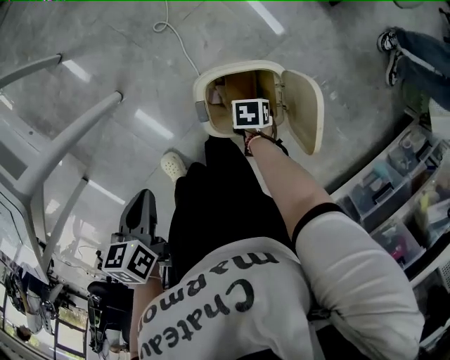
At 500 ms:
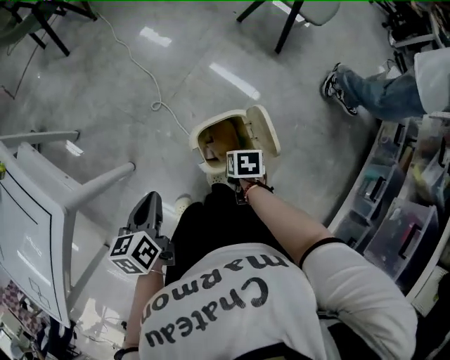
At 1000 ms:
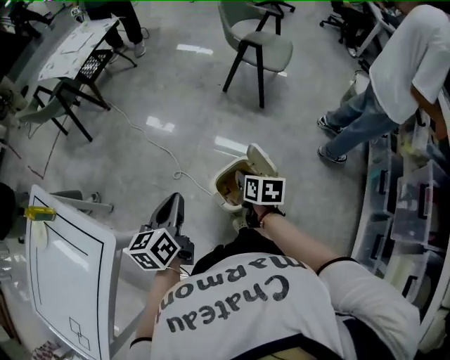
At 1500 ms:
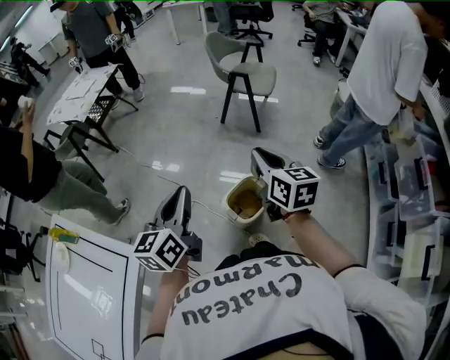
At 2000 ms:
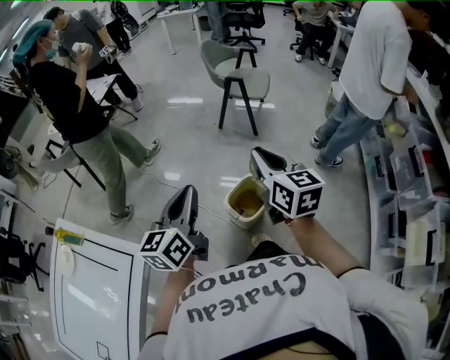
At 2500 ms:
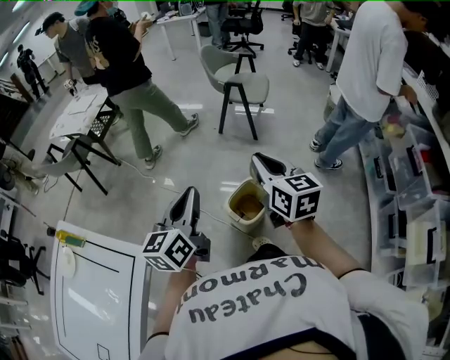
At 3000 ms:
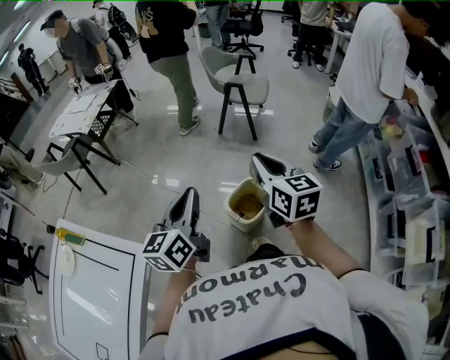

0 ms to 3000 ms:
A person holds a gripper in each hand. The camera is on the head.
0 ms to 1500 ms: The right gripper moves upward, roughly 60 cm, tips its fingers upward by roughly 70 degrees, and closes up, while the left gripper moves upward, some 40 cm, and angles its fingers upward, by approximately 50 degrees.
1500 ms to 3000 ms: The right gripper heads backward, covering roughly 5 cm, while the left gripper changes place by some 5 cm.

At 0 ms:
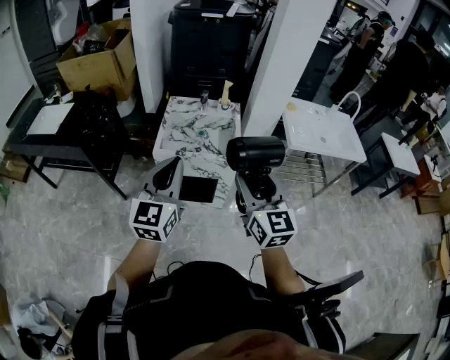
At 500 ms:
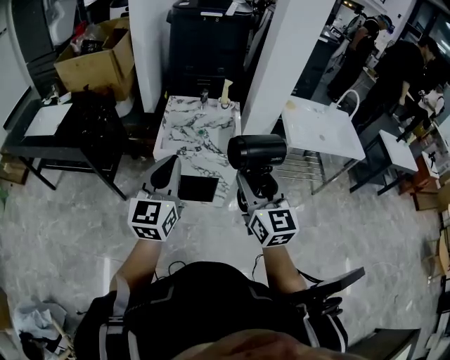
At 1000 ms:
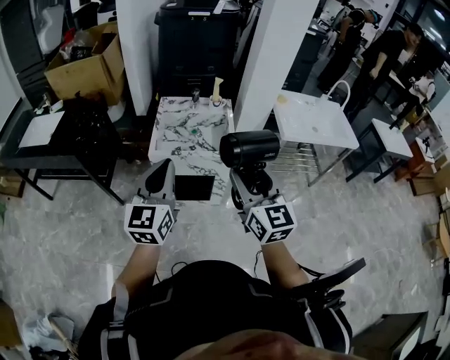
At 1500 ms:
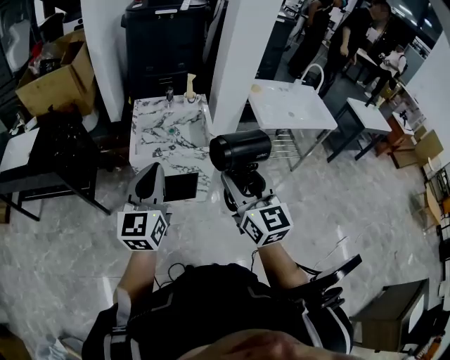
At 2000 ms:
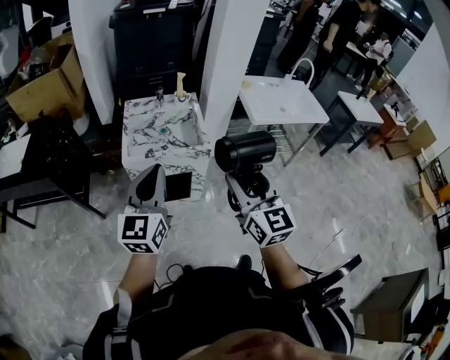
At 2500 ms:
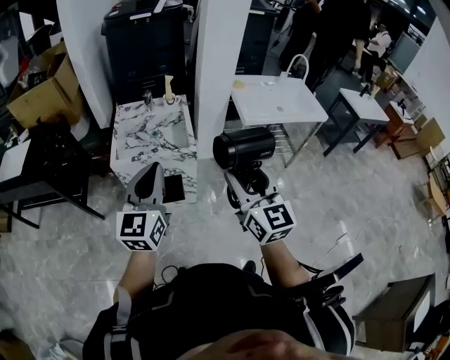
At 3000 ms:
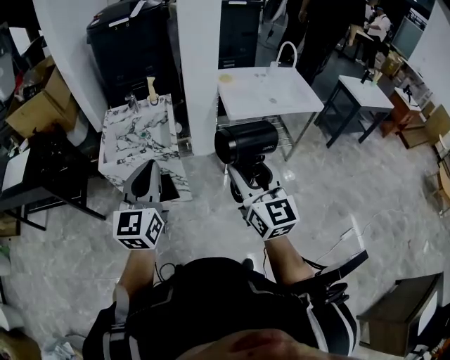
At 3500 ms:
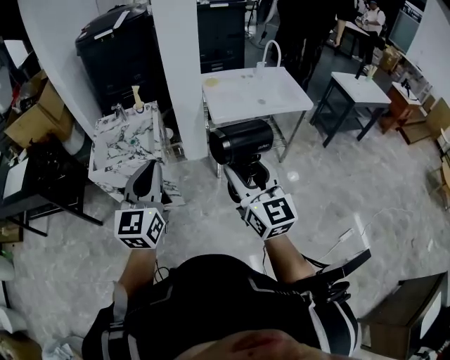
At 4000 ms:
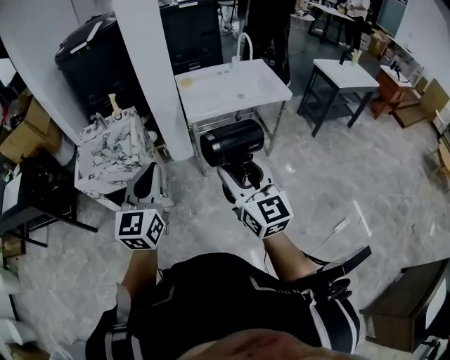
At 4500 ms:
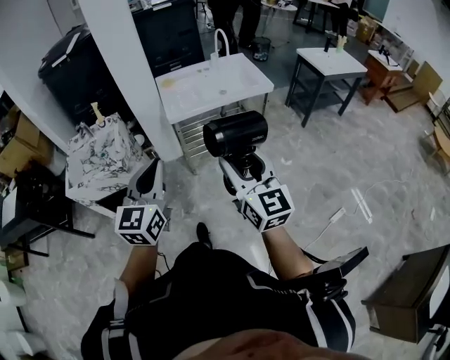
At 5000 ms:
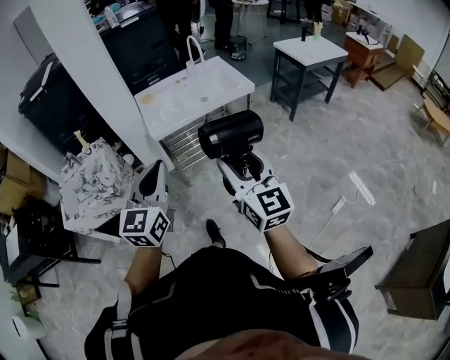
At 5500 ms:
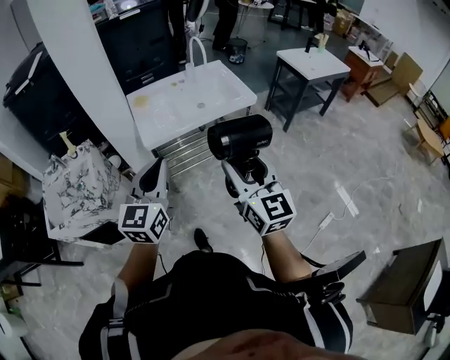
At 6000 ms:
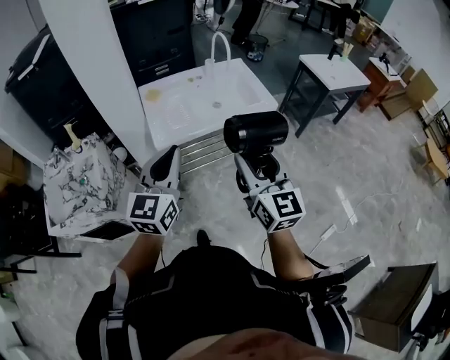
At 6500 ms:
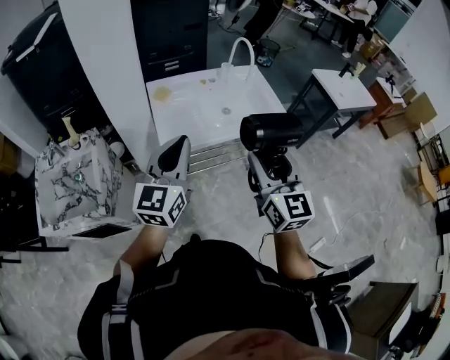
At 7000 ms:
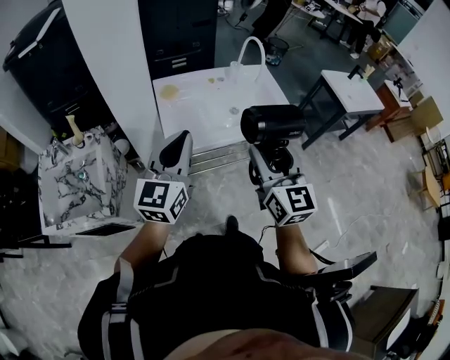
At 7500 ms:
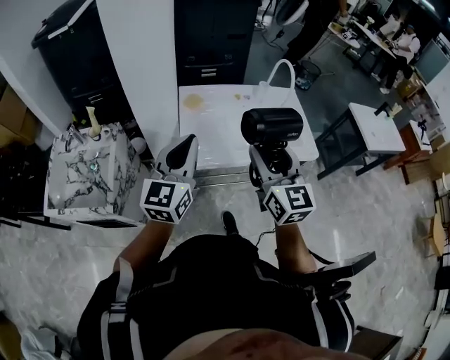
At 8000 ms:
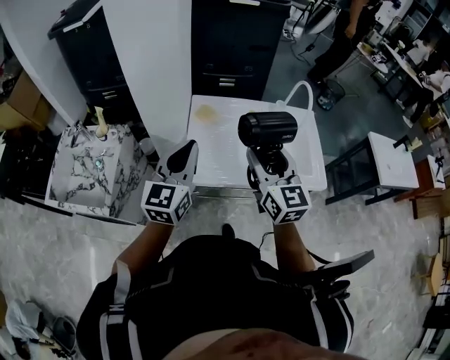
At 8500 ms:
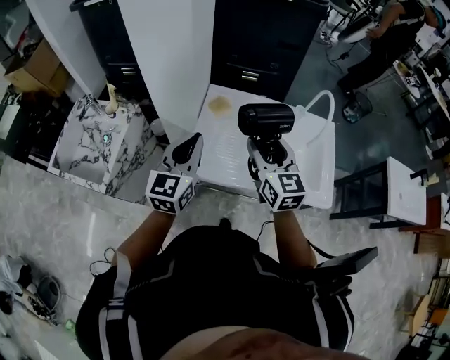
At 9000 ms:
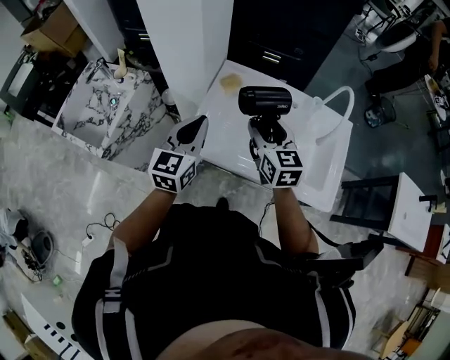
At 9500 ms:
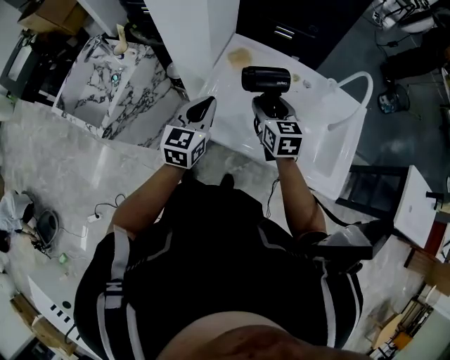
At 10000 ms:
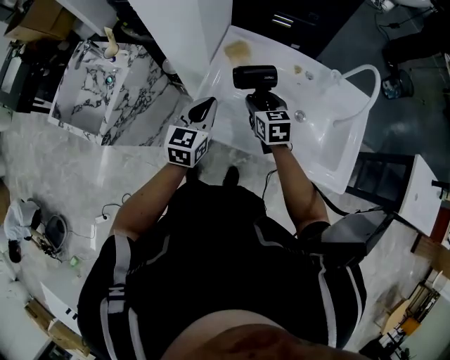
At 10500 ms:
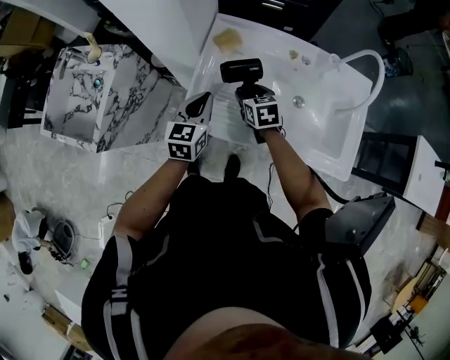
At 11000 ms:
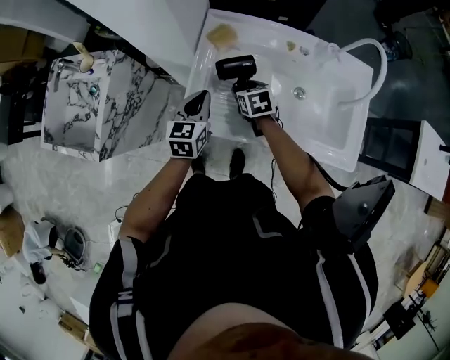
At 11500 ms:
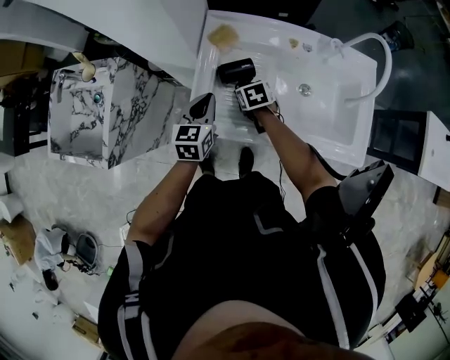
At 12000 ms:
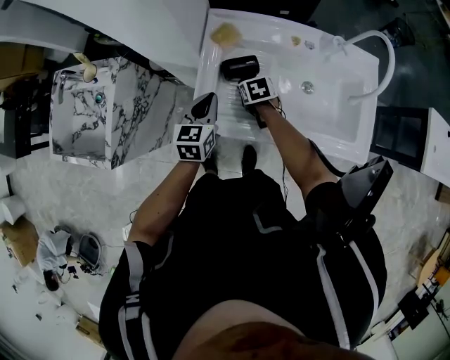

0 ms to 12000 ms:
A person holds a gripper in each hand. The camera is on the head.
0 ms to 2000 ms: The grippers stay close to where they were, moving slightly.
2000 ms to 4000 ms: The two grippers travel together, to the right, approximately 40 cm.
4000 ms to 6000 ms: The two grippers go approximately 30 cm forward and to the right.
6000 ms to 8000 ms: Both grippers move forward, roughly 30 cm. The left gripper rotates approximately 20 degrees, while the right gripper changes its angle by roughly 20 degrees.
8000 ms to 10000 ms: Both grippers travel together downward and forward, about 25 cm. The left gripper turns by about 20 degrees; the right gripper points its fingers about 30 degrees further downward.
10000 ms to 12000 ms: The right gripper travels downward by roughly 15 cm, and rotates about 30 degrees. The left gripper goes some 5 cm downward.

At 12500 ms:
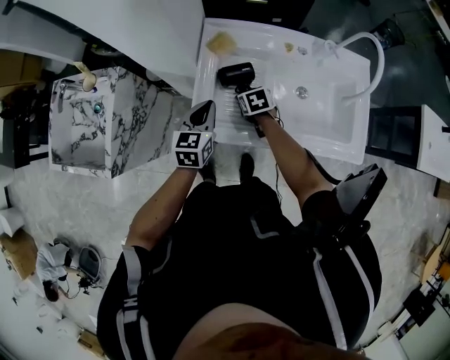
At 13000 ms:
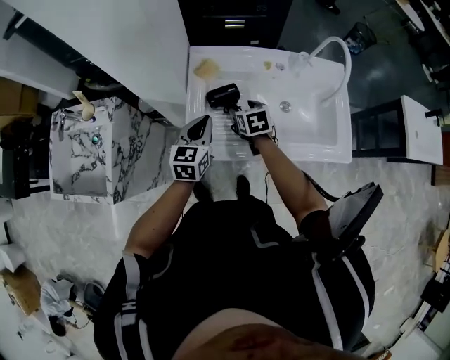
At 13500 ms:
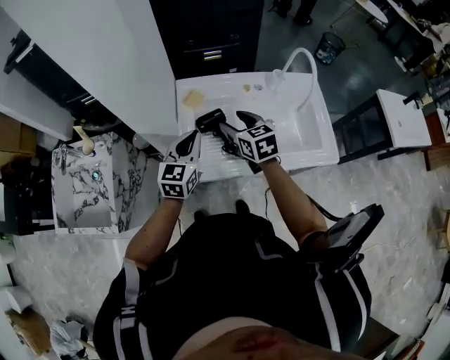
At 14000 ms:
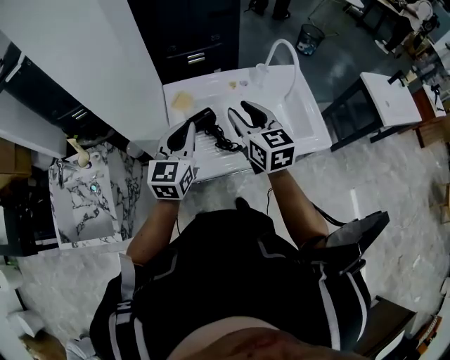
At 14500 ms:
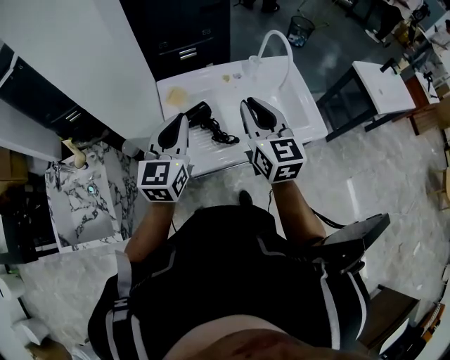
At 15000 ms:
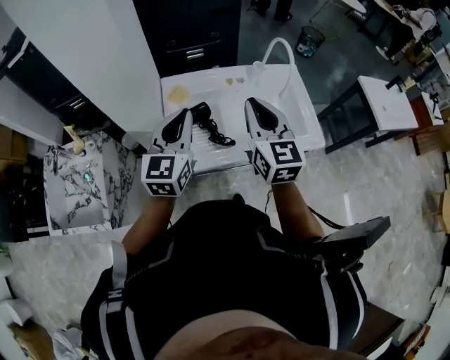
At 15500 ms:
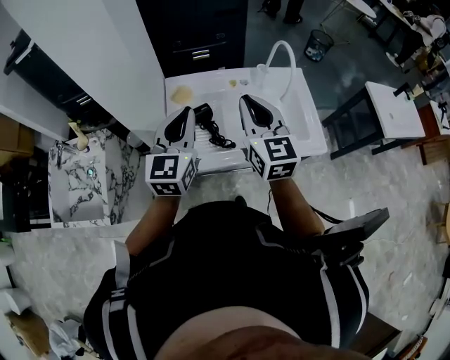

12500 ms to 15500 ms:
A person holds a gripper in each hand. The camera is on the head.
12500 ms to 14000 ms: The right gripper shifts some 35 cm upward, and points its fingers approximately 50 degrees further upward, while the left gripper shifts roughly 20 cm upward, and turns by some 30 degrees.
14000 ms to 15500 ms: The grippers both shift upward by about 5 cm. The right gripper closes its fingers.

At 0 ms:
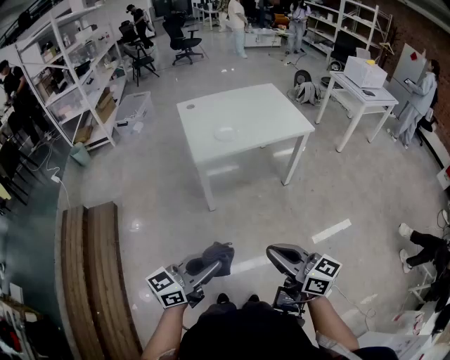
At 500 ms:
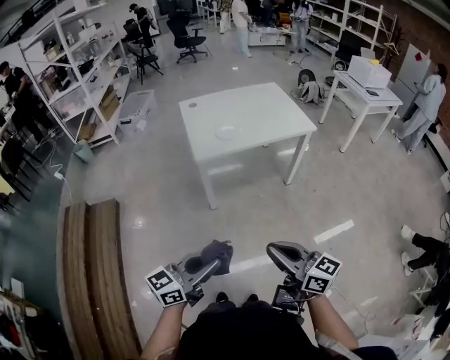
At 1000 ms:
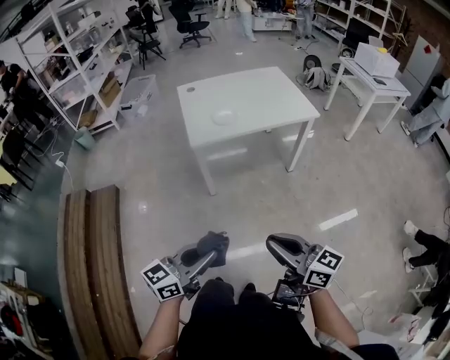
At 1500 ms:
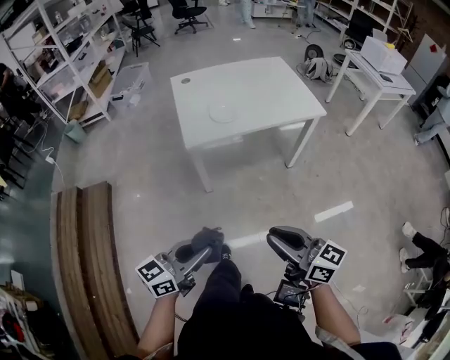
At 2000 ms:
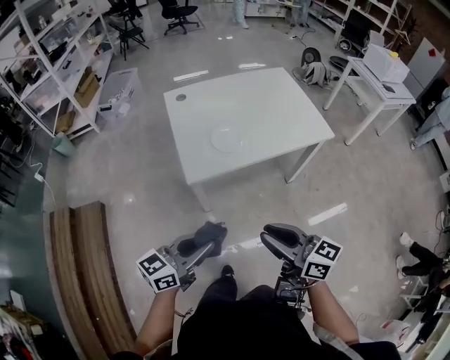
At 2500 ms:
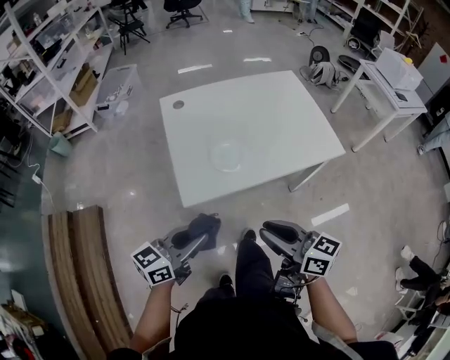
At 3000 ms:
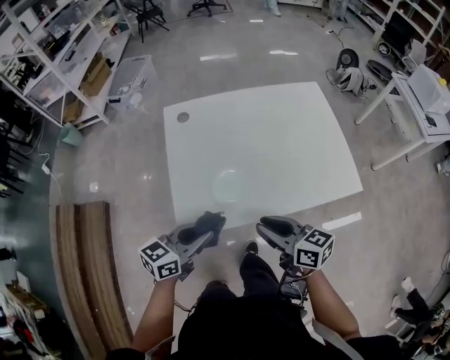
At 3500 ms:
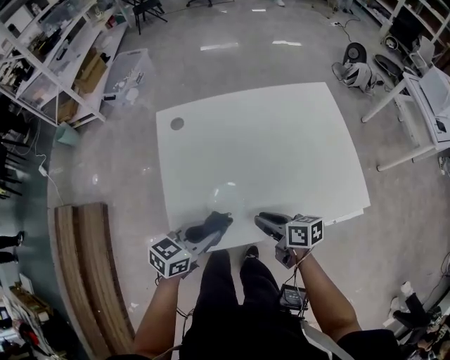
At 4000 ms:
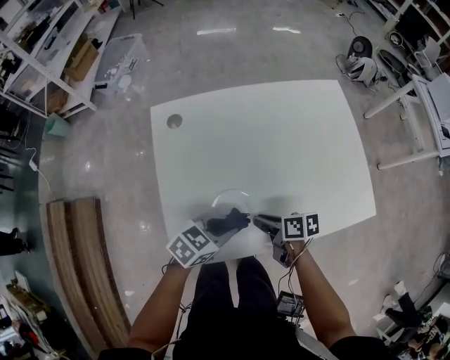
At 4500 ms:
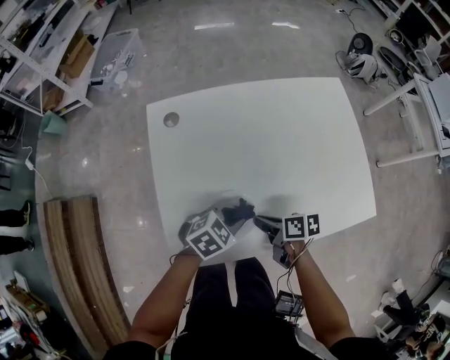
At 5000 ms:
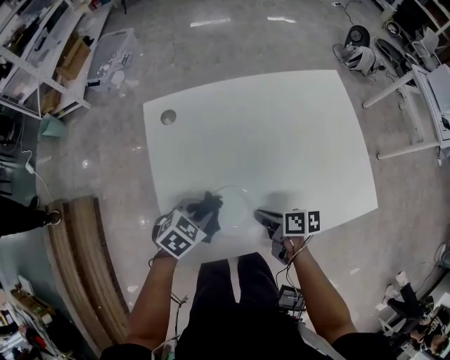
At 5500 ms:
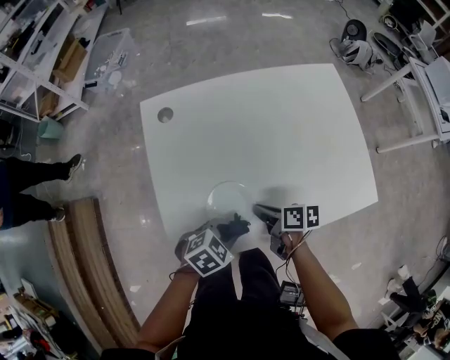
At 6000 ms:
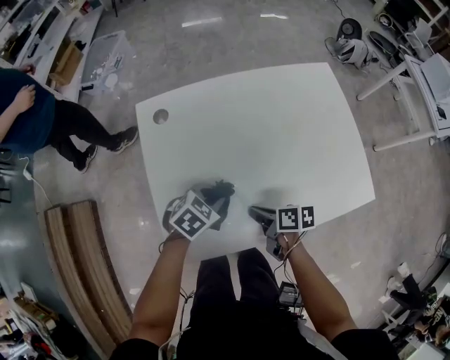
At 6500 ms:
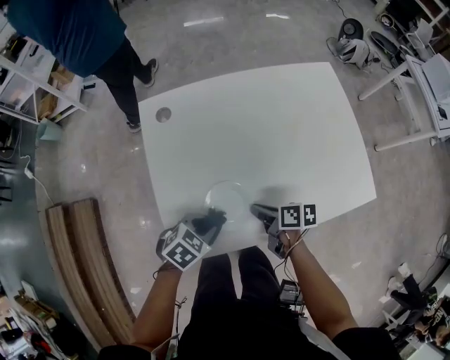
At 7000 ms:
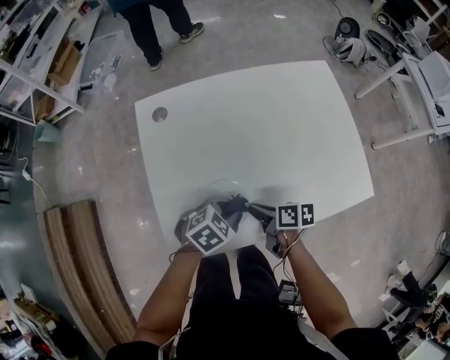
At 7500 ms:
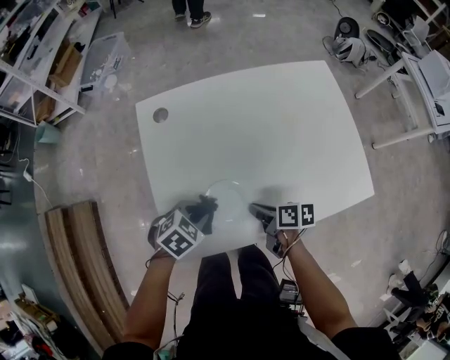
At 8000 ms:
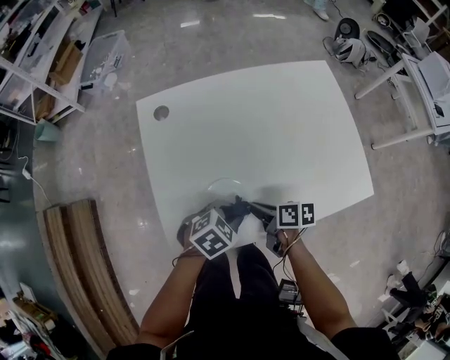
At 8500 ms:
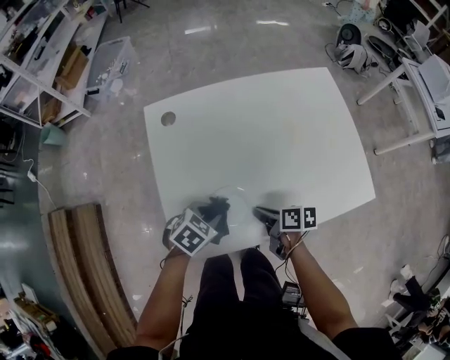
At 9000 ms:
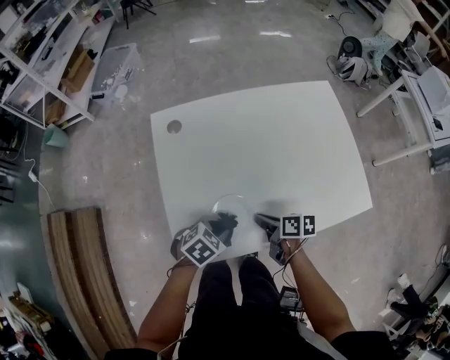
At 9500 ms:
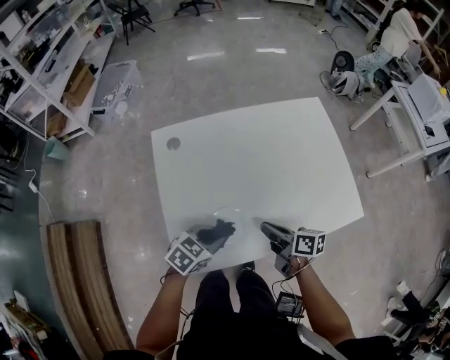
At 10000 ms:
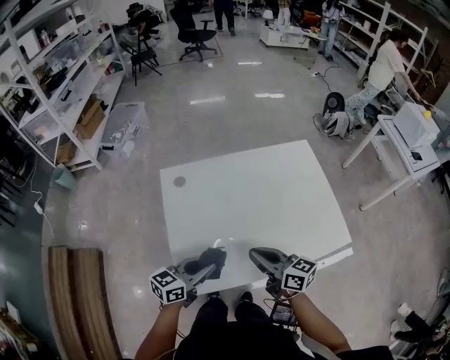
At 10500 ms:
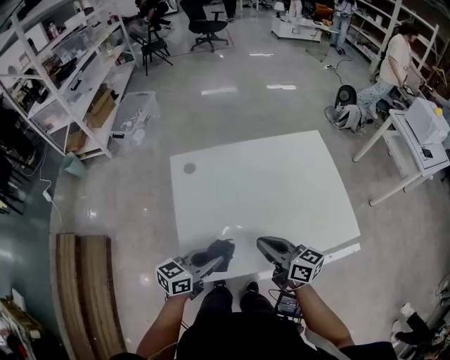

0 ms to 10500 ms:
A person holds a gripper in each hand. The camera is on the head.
0 ms to 2000 ms: The grippers both shift forward by about 35 cm.
2000 ms to 4000 ms: The two grippers travel together, approximately 50 cm. The left gripper tips its fingers downward by approximately 30 degrees. The right gripper tips its fingers downward by about 30 degrees.
4000 ms to 6500 ms: The left gripper moves about 10 cm, and changes its angle by some 20 degrees.
8500 ms to 10500 ms: The two grippers go roughly 20 cm upward. The left gripper points its fingers approximately 40 degrees further upward, while the right gripper points its fingers approximately 30 degrees further upward.
